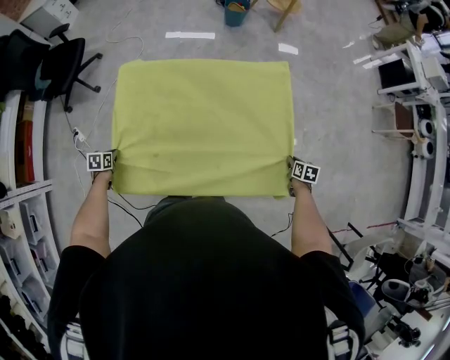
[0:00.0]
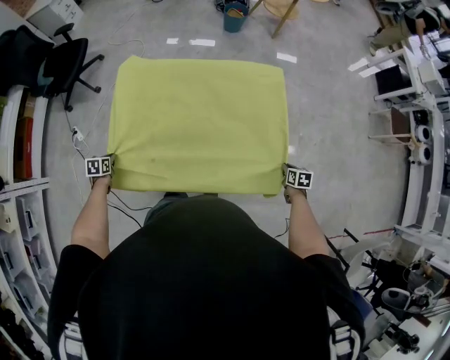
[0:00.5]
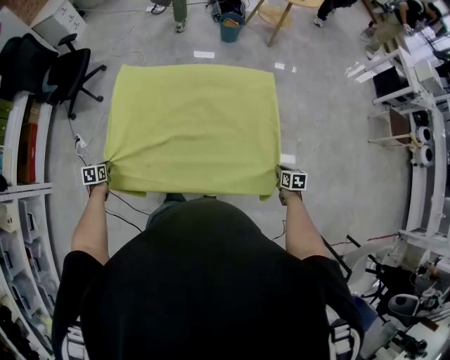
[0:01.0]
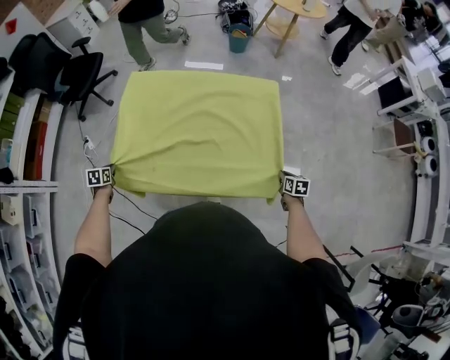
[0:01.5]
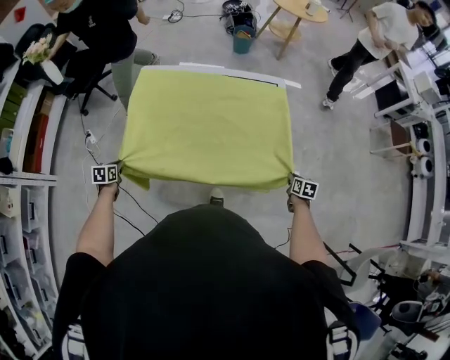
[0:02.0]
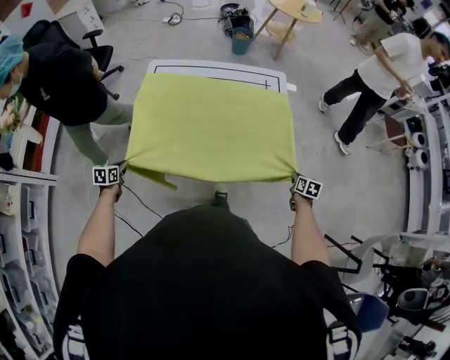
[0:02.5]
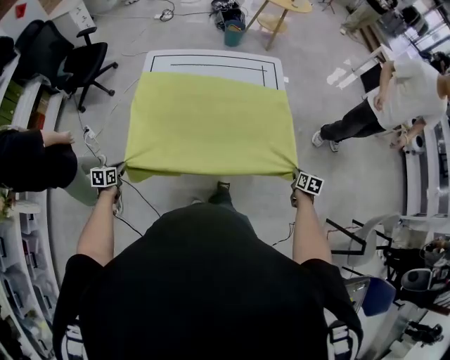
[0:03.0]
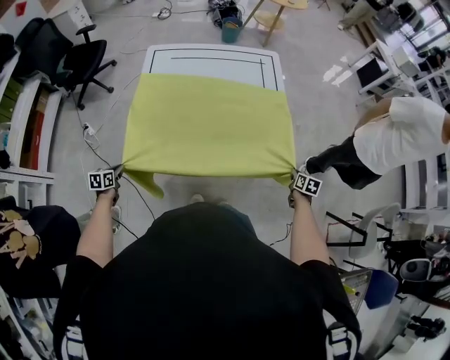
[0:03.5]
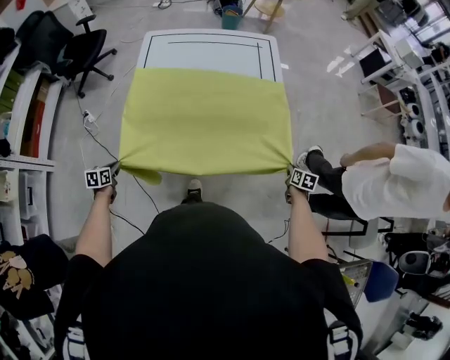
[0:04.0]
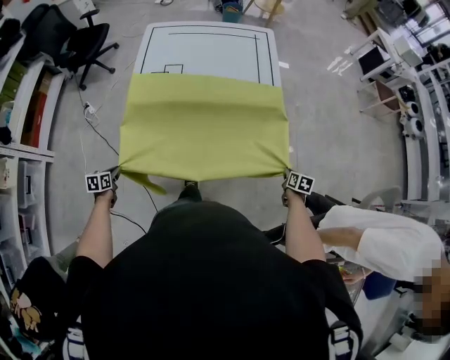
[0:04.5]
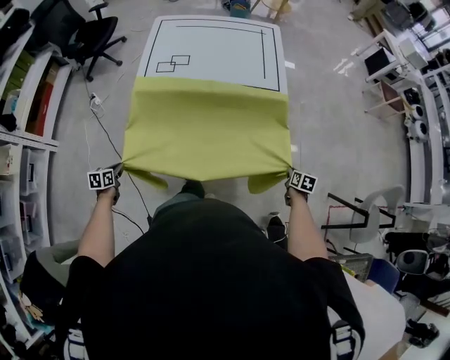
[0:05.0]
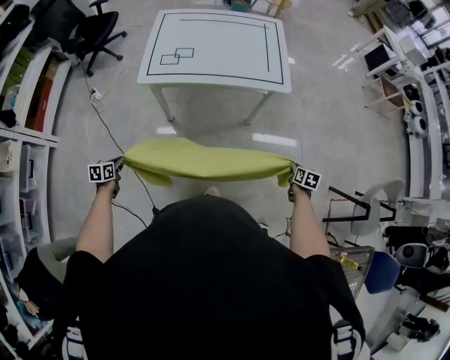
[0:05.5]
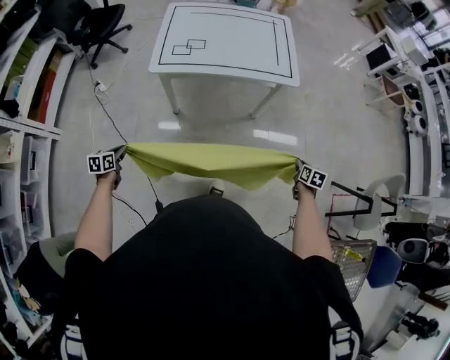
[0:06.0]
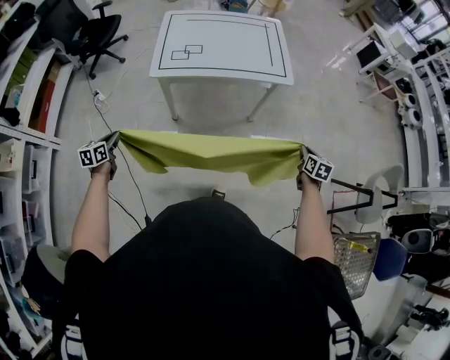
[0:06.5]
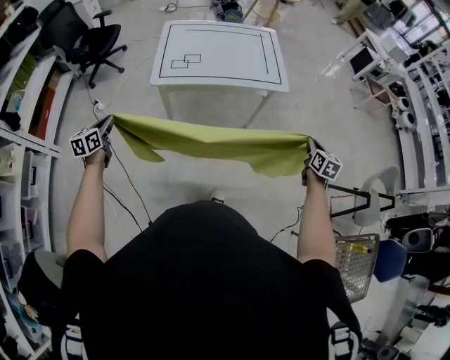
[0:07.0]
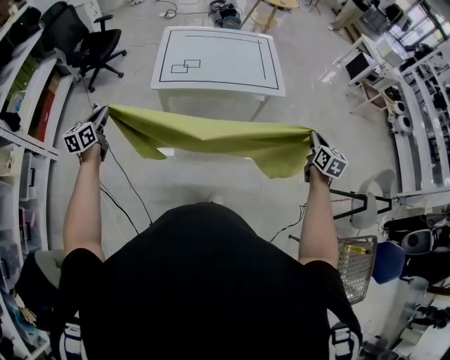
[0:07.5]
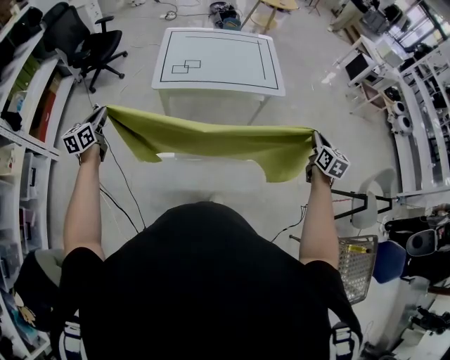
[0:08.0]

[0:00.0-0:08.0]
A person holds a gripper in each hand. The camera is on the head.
0.0 to 2.0 s: The grippers both shift backward by approximately 25 cm.
2.0 to 4.0 s: Both grippers are carried backward, about 40 cm.
4.0 to 6.0 s: Both grippers travel together backward, approximately 30 cm.
6.0 to 8.0 s: Both grippers travel together upward, about 30 cm. The right gripper turns by about 30 degrees; the left gripper rotates approximately 30 degrees.

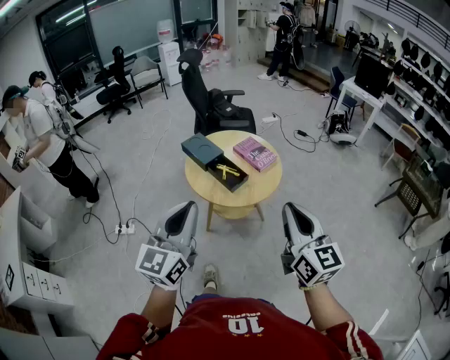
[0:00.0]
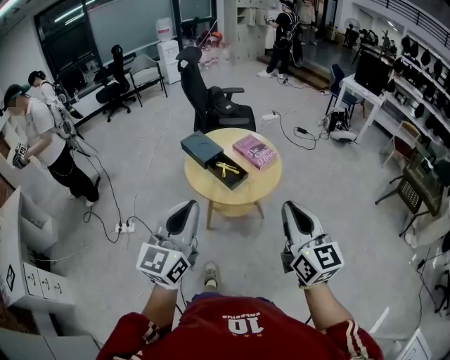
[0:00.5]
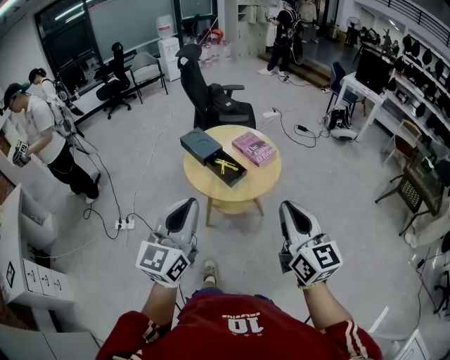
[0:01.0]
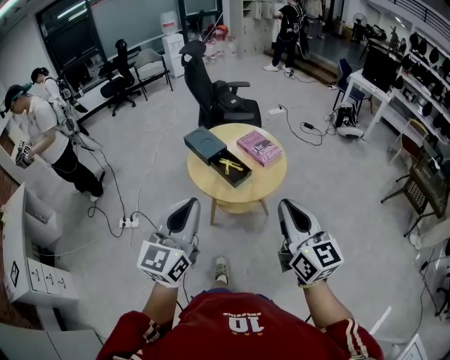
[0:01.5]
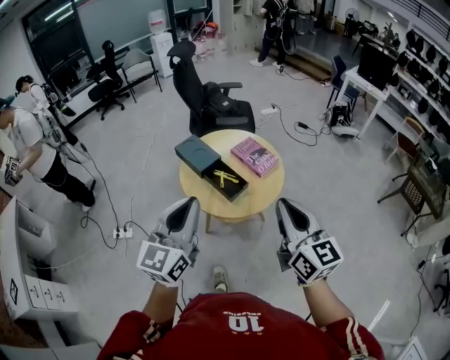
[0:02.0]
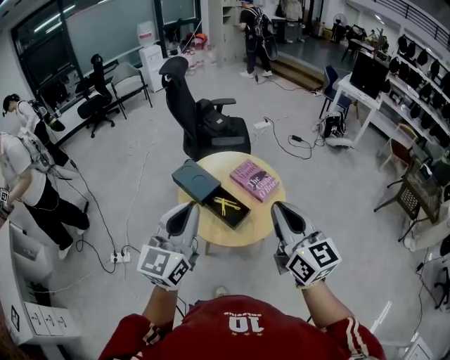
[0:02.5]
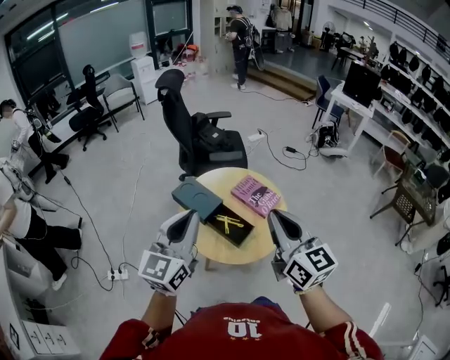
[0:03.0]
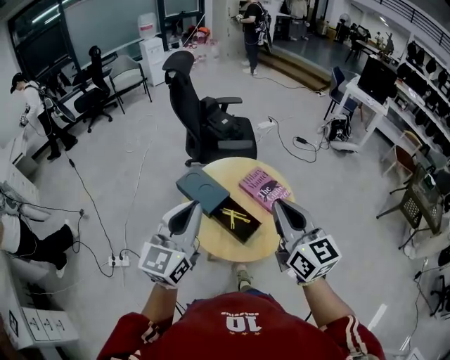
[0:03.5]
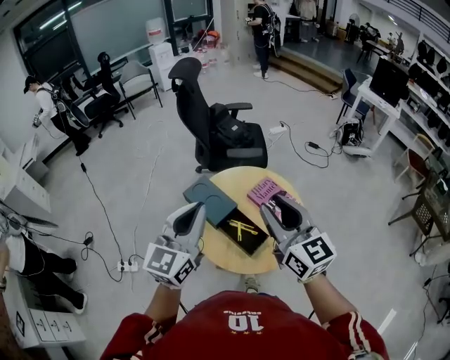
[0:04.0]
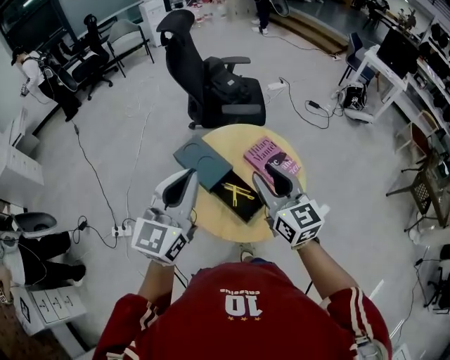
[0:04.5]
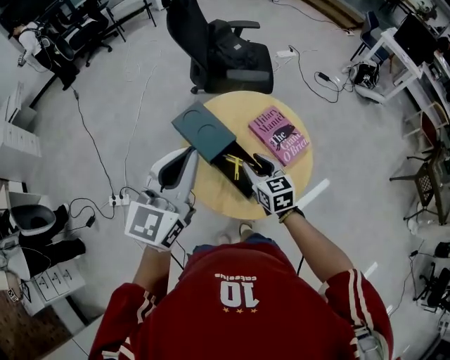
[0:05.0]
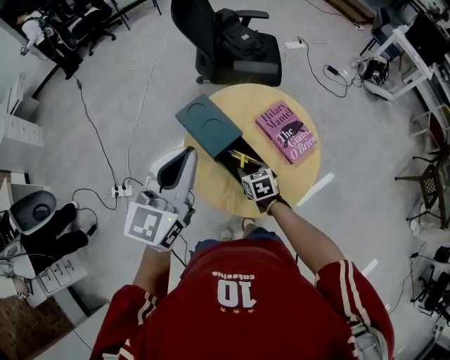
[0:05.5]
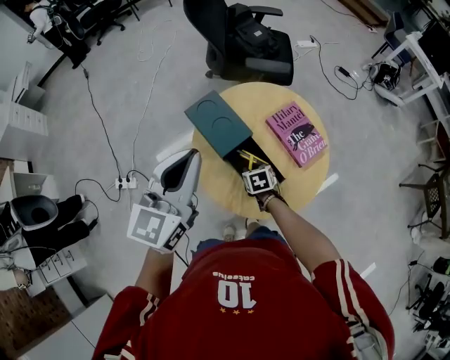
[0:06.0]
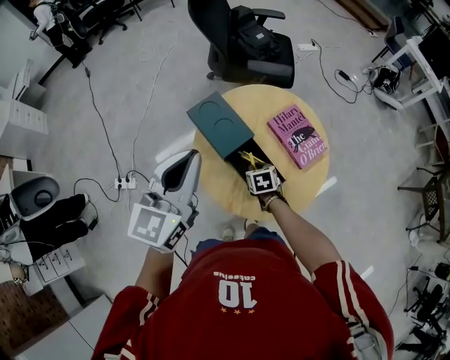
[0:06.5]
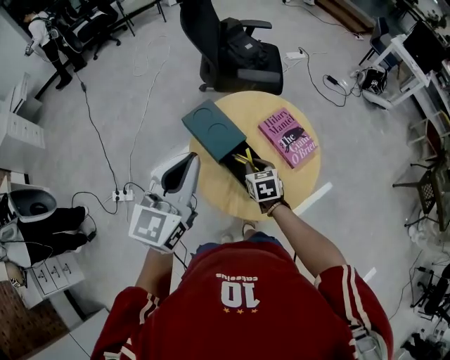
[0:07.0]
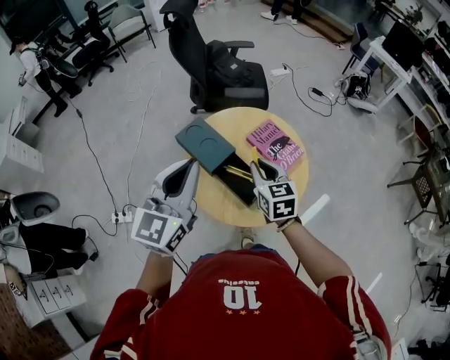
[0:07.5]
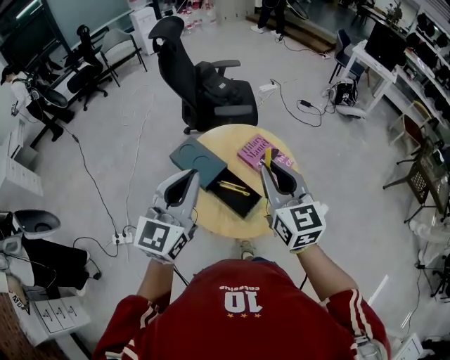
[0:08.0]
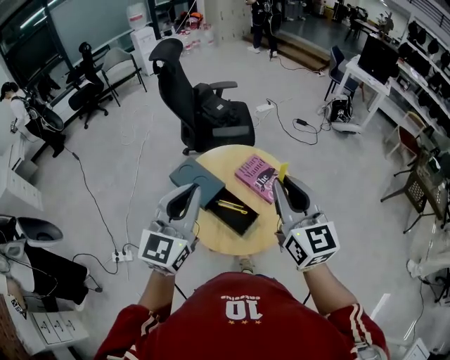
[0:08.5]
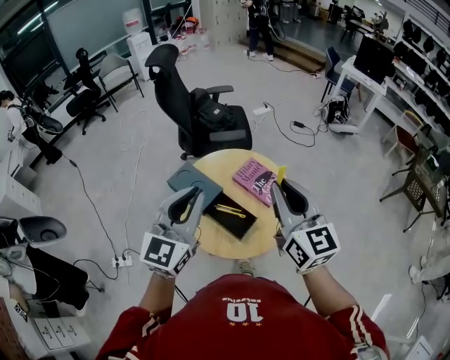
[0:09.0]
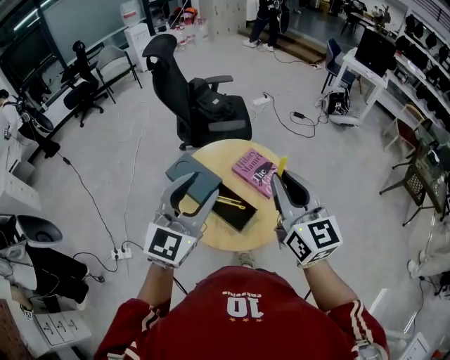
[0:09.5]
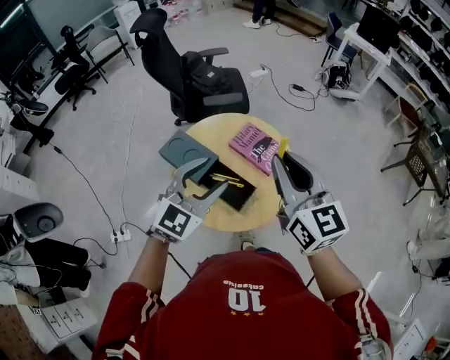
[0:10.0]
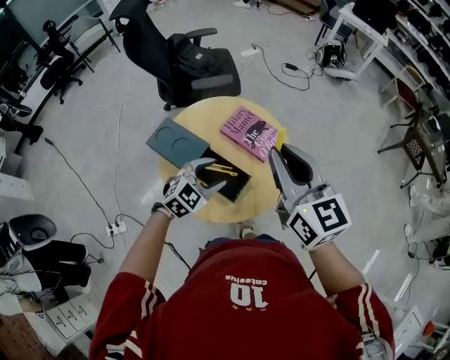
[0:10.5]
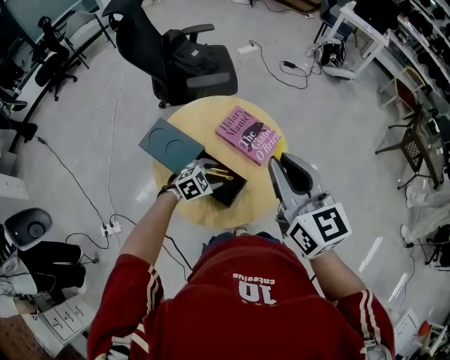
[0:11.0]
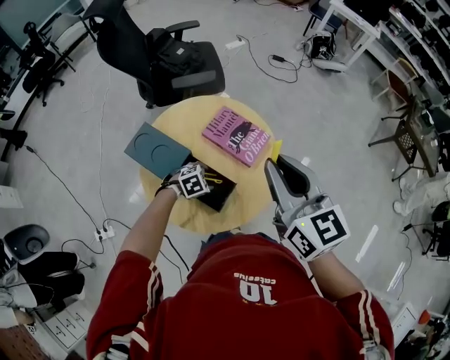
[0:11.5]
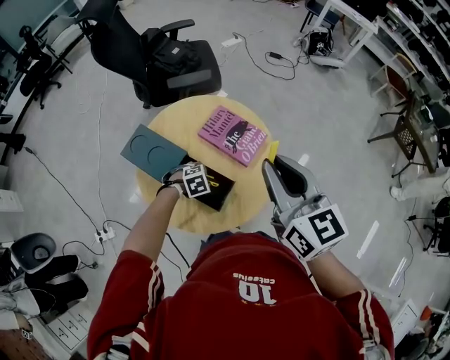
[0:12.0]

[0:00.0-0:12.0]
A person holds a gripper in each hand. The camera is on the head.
0.0 to 2.0 s: Both grippers travel together forward, some 10 cm.
2.0 to 4.0 s: The left gripper heads forward, covering roughly 25 cm; the right gripper moves forward and to the left, about 30 cm, and opens its fingers.
4.0 to 6.0 s: The left gripper is displaced downward and forward by roughly 10 cm. Meanwhile the right gripper goes about 50 cm downward, and points its fingers approximately 60 degrees further downward.
6.0 to 8.0 s: The left gripper heads upward, backward and to the right, covering some 10 cm. The right gripper is displaced upward by approximately 40 cm, and tilts its fingers roughly 50 degrees upward.
8.0 to 10.0 s: The right gripper shifts by approximately 5 cm. Meanwhile the left gripper moves to the right and downward, some 10 cm, swivels approximately 30 degrees, and opens its fingers.
10.0 to 12.0 s: The right gripper moves downward, about 5 cm. The left gripper heads downward, covering approximately 40 cm, and tilts its fingers roughly 60 degrees downward.

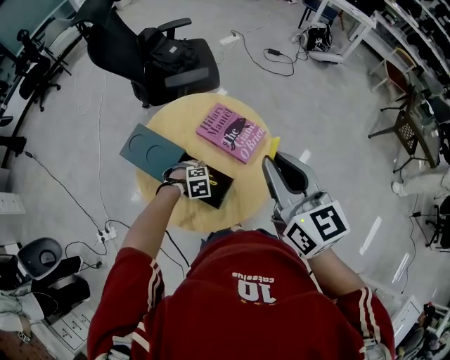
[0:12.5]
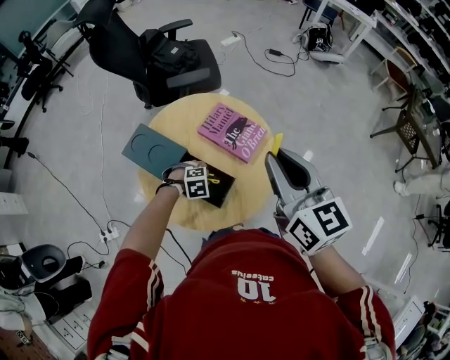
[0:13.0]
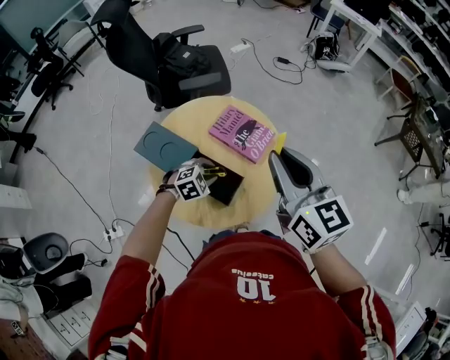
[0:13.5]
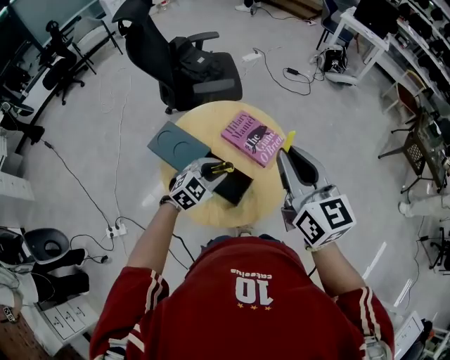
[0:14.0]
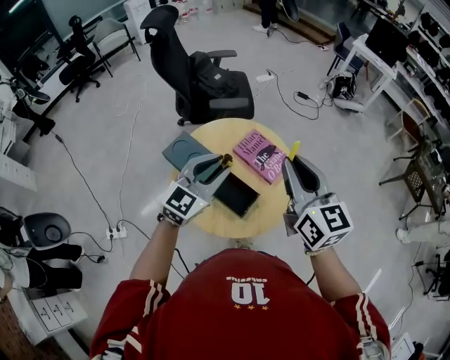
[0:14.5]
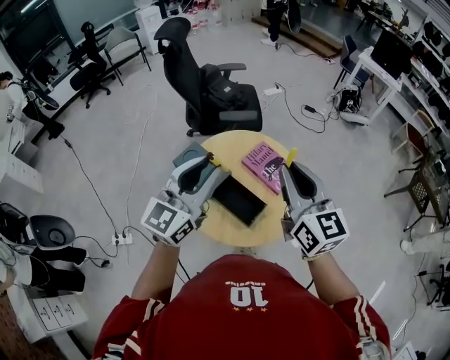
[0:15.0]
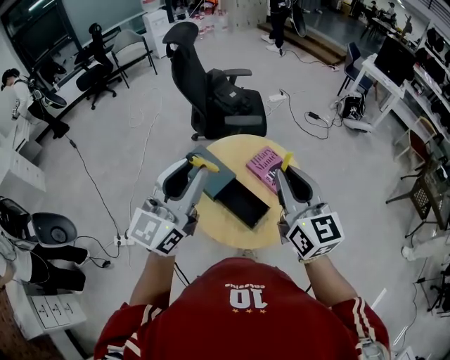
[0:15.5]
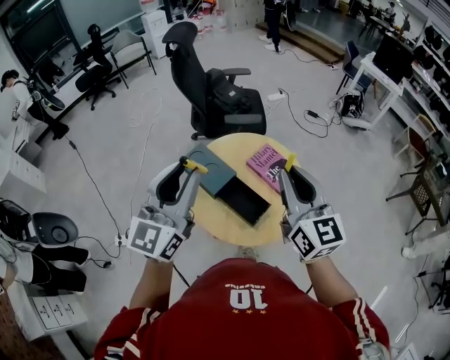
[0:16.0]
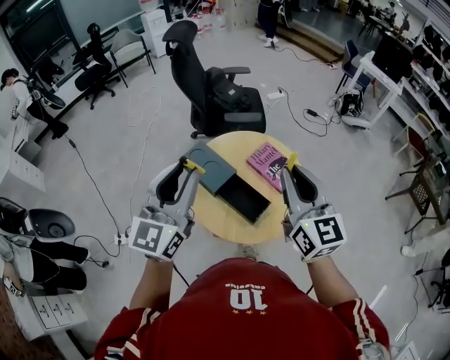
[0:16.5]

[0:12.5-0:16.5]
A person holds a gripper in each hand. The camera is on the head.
12.5 to 14.5 s: The left gripper shifts some 40 cm upward, and points its fingers roughly 70 degrees further upward. The right gripper travels upward by approximately 5 cm.
14.5 to 16.5 s: The right gripper shifts by roughly 5 cm. Meanwhile the left gripper moves upward, to the left and backward, approximately 20 cm, and rotates about 30 degrees.

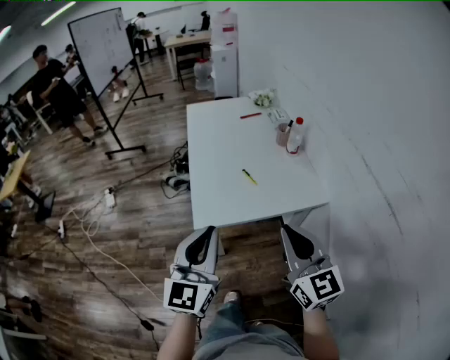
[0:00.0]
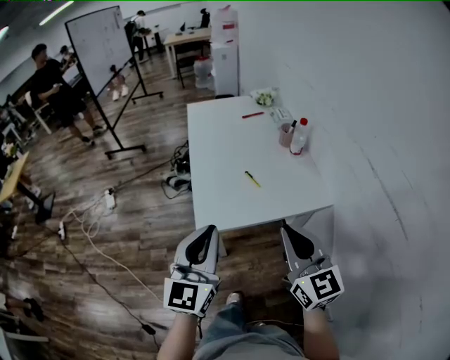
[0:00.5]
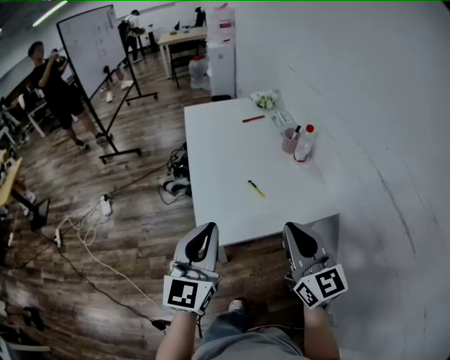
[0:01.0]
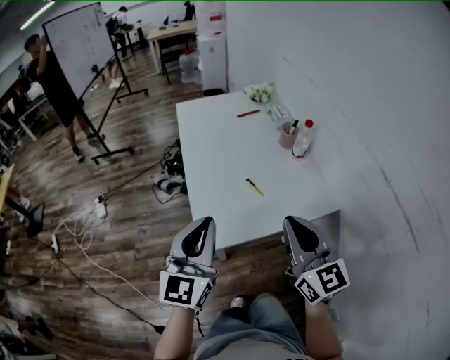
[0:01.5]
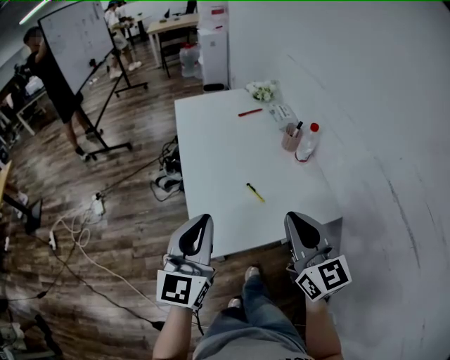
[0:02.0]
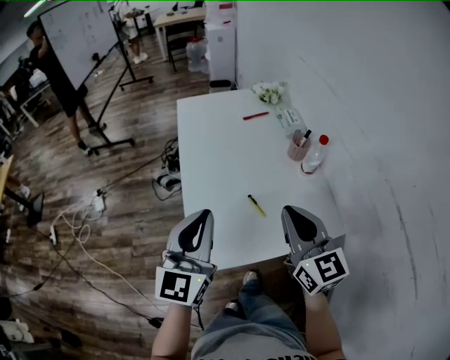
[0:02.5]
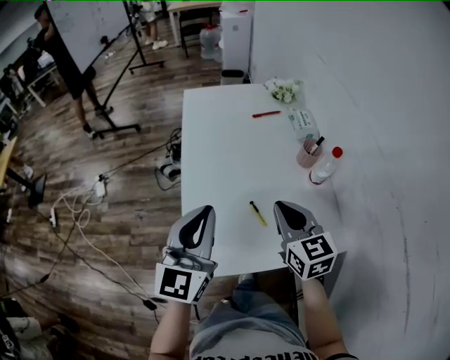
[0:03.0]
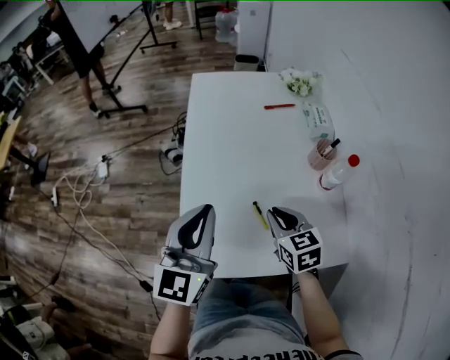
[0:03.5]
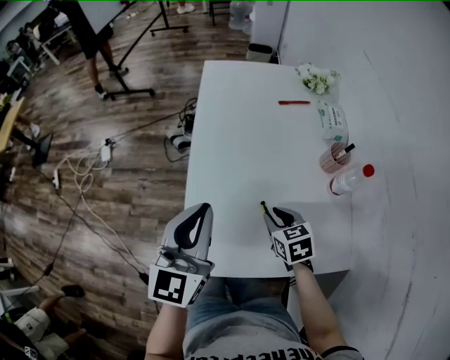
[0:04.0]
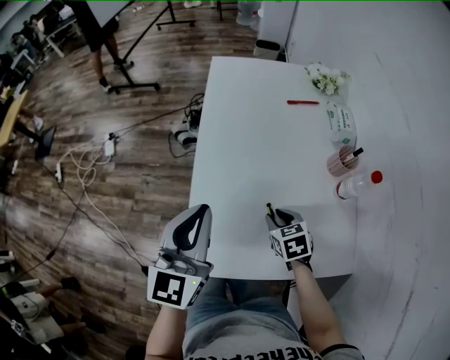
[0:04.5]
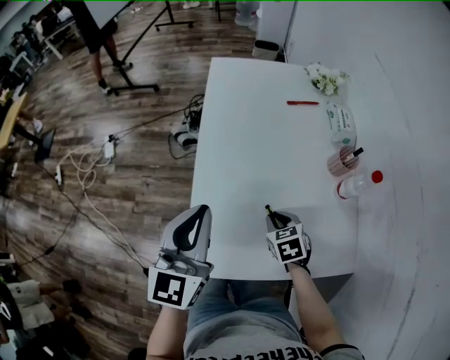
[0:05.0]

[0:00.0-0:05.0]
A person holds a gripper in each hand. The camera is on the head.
0.0 to 2.5 s: Both grippers travel together forward, about 25 cm.
2.5 to 5.0 s: The left gripper goes about 10 cm forward; the right gripper goes approximately 30 cm downward and forward, and angles its fingers downward, by approximately 50 degrees.
